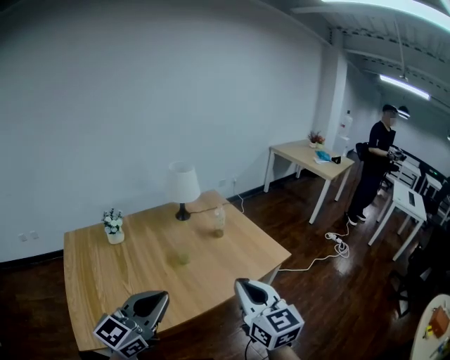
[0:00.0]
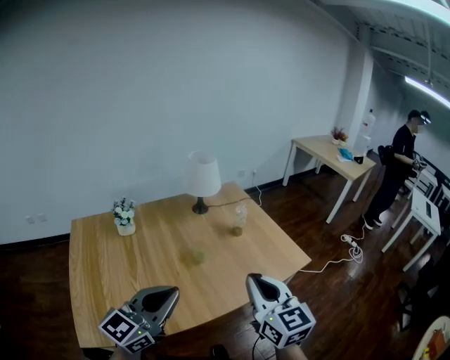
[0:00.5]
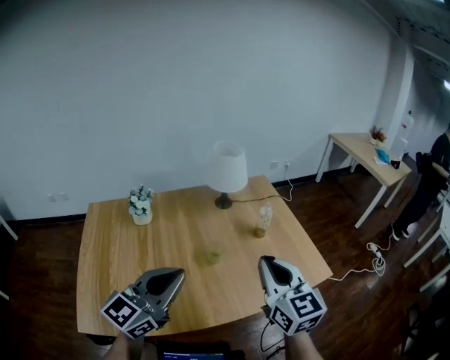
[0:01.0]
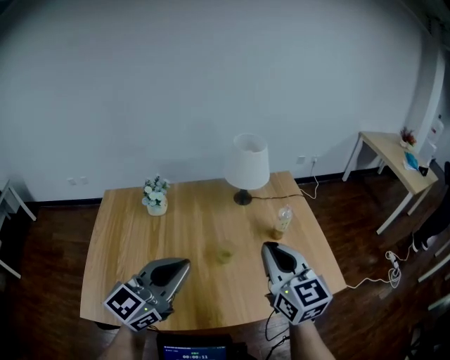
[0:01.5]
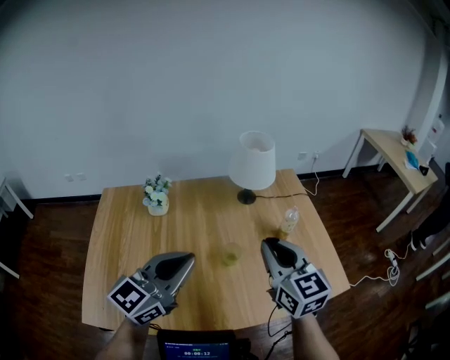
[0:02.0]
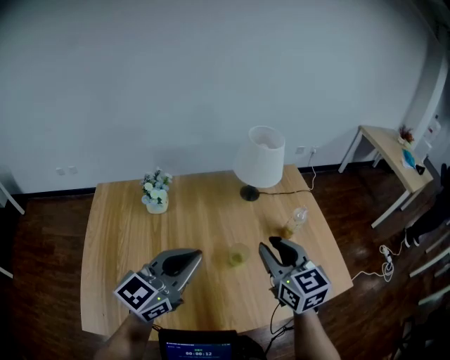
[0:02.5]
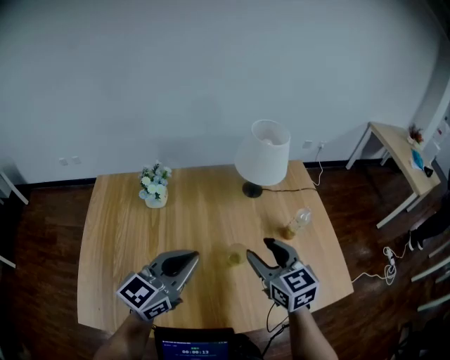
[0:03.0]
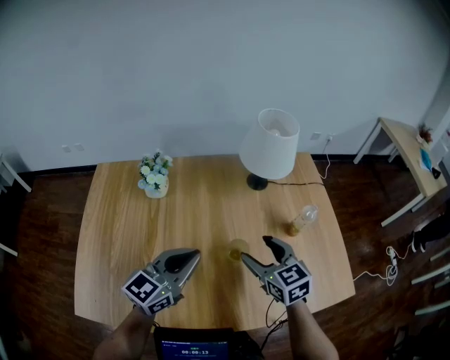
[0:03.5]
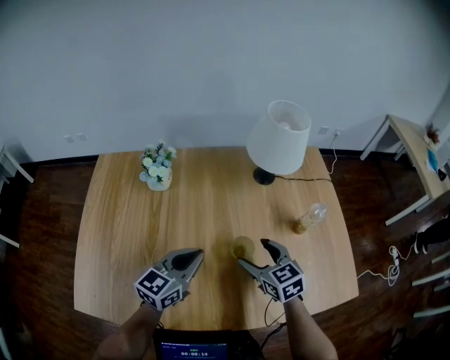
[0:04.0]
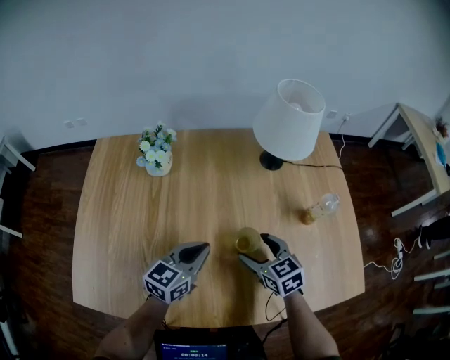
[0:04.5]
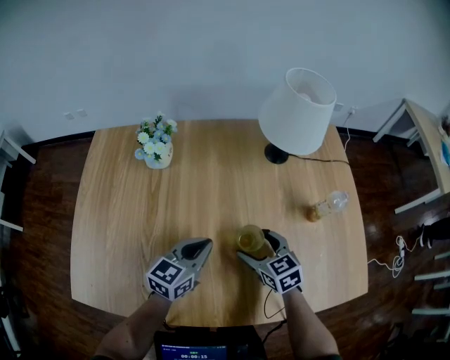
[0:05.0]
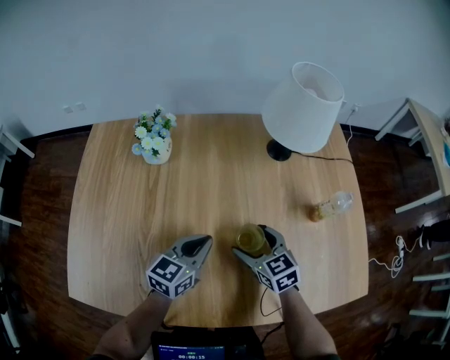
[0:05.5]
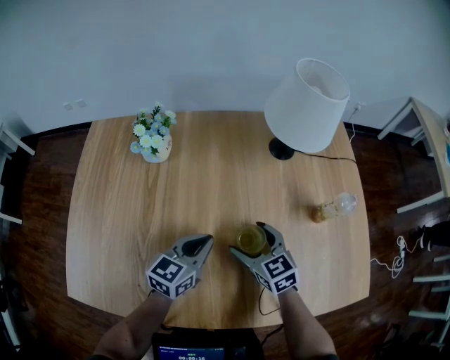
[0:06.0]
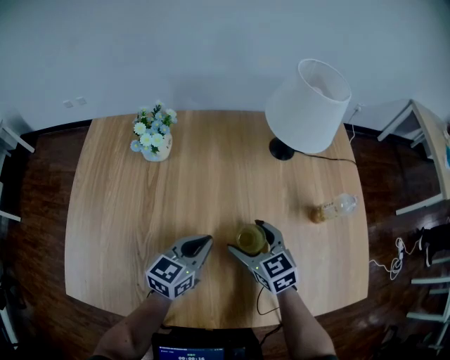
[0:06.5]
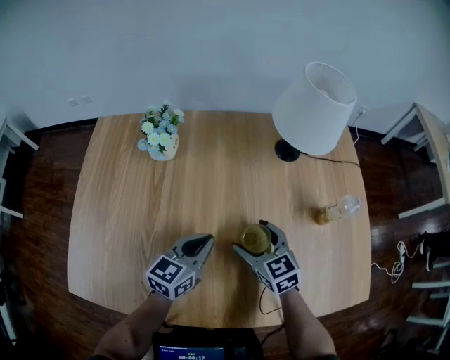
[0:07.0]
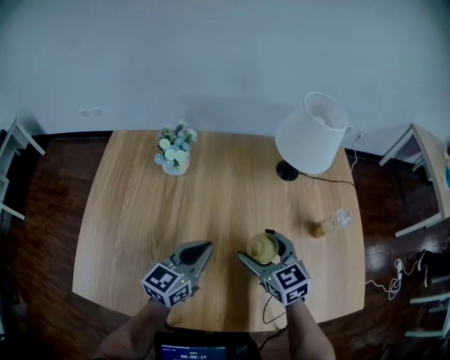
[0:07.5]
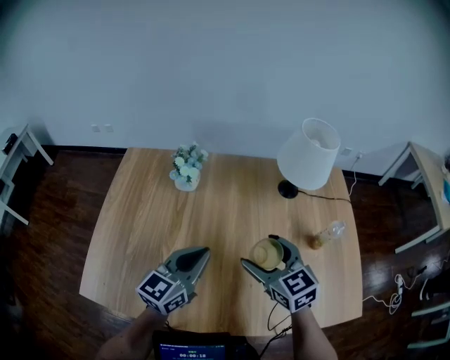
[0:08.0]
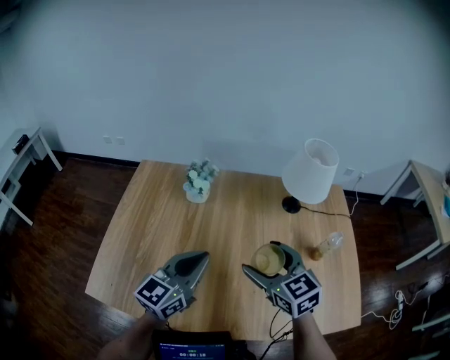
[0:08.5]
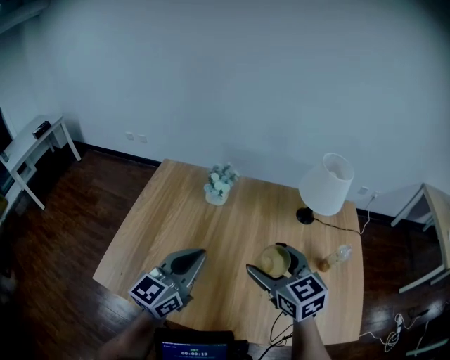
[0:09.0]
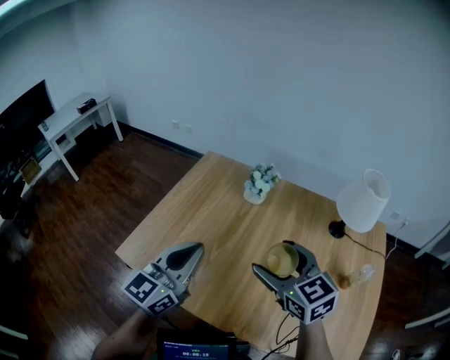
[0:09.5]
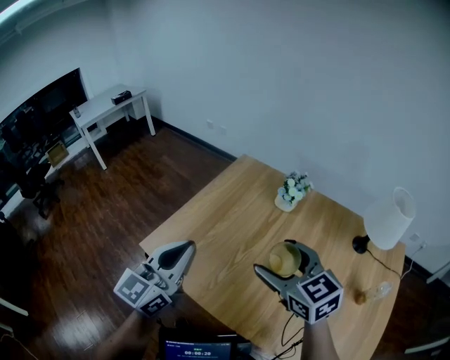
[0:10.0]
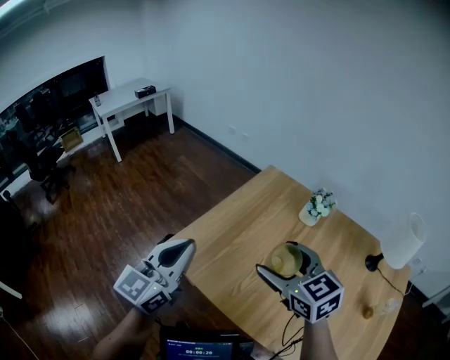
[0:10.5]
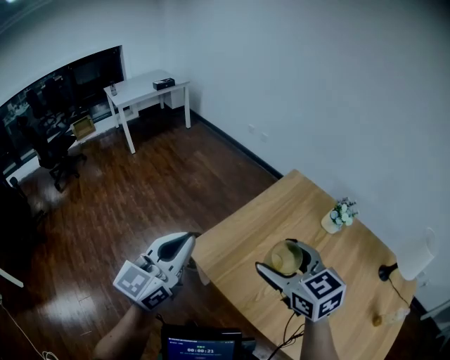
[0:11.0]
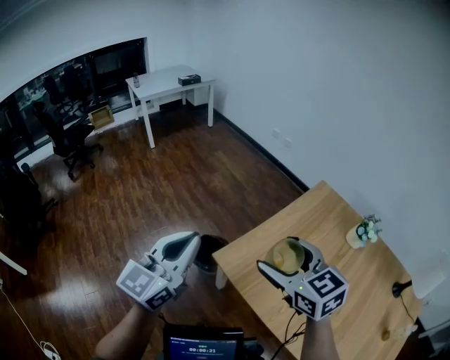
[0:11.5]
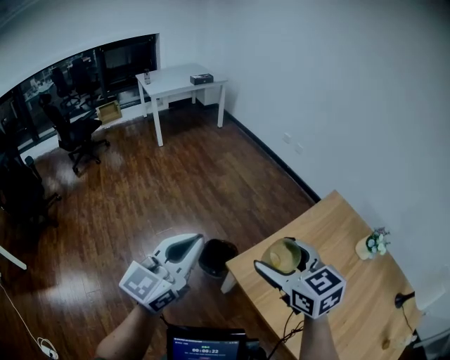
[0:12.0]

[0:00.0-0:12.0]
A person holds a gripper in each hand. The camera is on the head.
0:00.0 to 0:02.0: Both grippers travel together forward, about 25 cm. The right gripper rotates roughly 20 degrees.
0:02.0 to 0:04.0: The right gripper goes about 25 cm downward, changes its angle by approximately 30 degrees, and opens up, while the left gripper shifts roughly 20 cm downward and forward.
0:04.0 to 0:06.0: Both grippers travel together downward, some 10 cm.
0:06.0 to 0:08.0: The right gripper travels upward by about 15 cm. The left gripper travels upward and to the left by some 15 cm.
0:08.0 to 0:10.0: The right gripper moves some 20 cm, and turns by about 30 degrees, while the left gripper shifts by about 30 cm, and changes its angle by some 40 degrees.
0:10.0 to 0:12.0: The grippers both shift to the left by about 35 cm. The right gripper changes its angle by roughly 20 degrees.

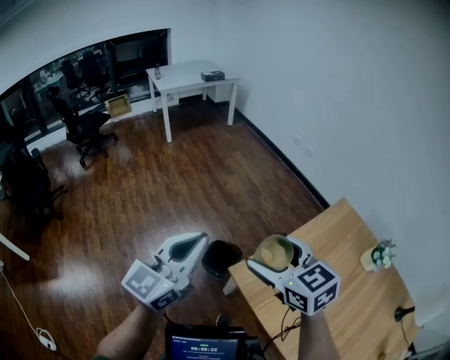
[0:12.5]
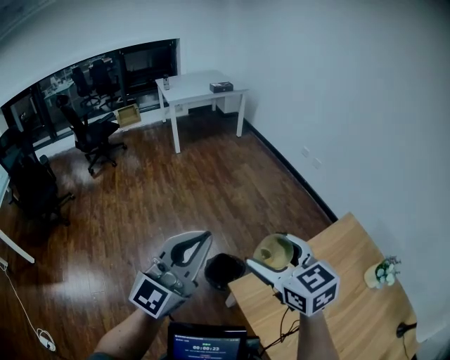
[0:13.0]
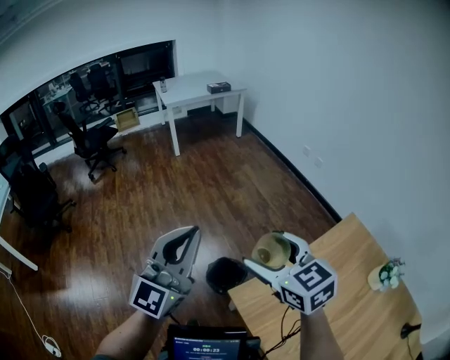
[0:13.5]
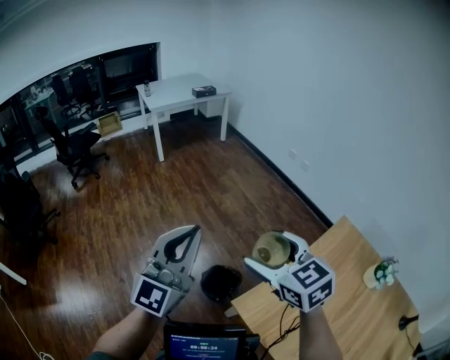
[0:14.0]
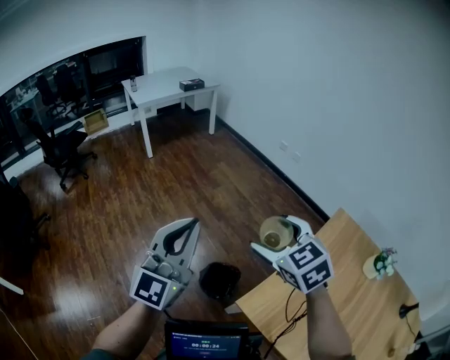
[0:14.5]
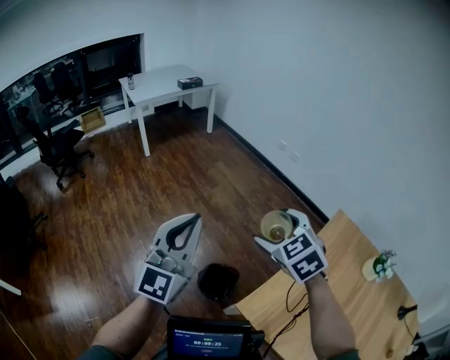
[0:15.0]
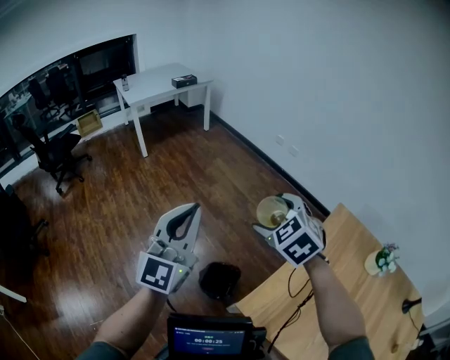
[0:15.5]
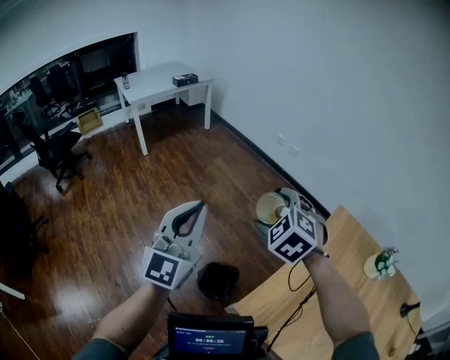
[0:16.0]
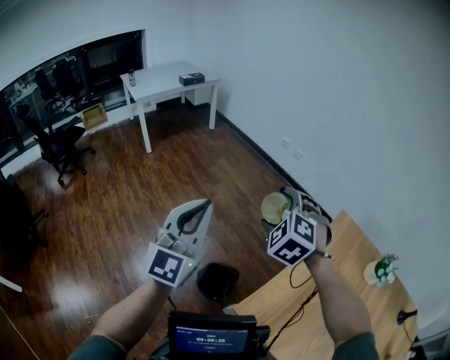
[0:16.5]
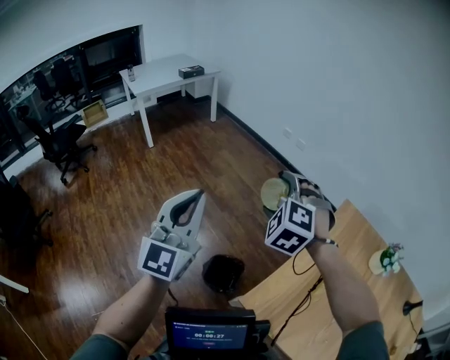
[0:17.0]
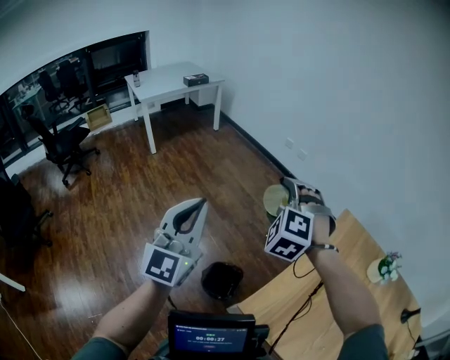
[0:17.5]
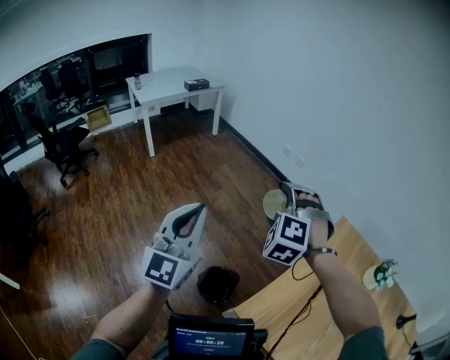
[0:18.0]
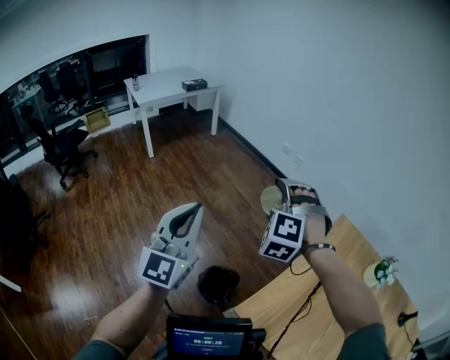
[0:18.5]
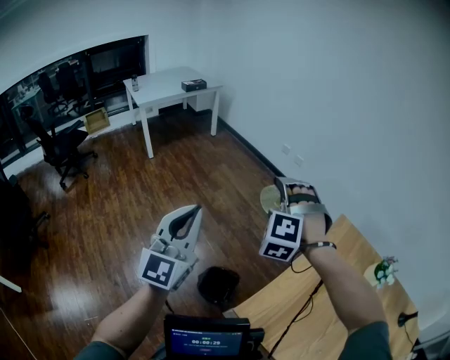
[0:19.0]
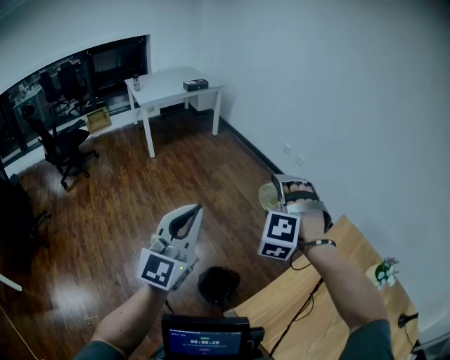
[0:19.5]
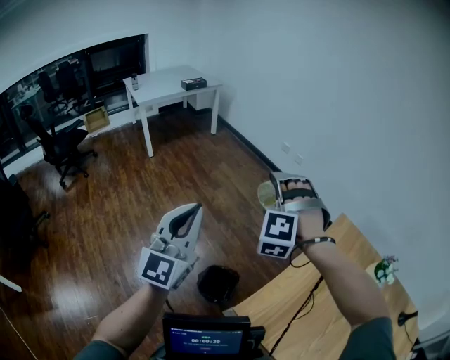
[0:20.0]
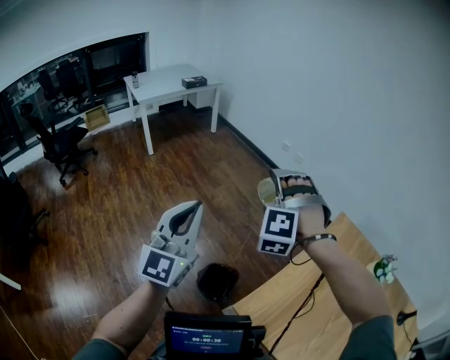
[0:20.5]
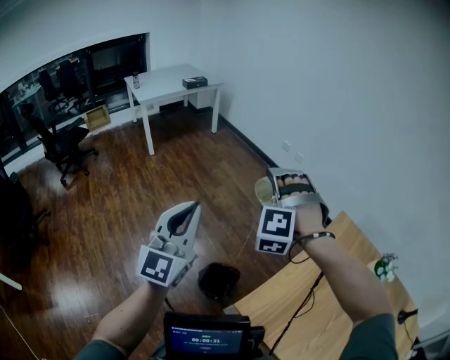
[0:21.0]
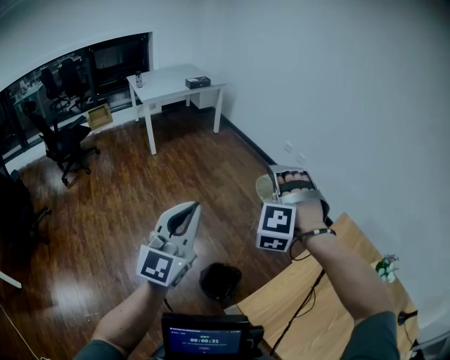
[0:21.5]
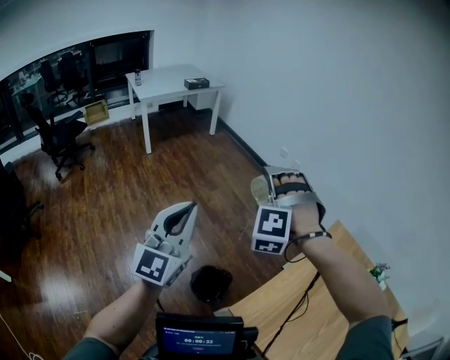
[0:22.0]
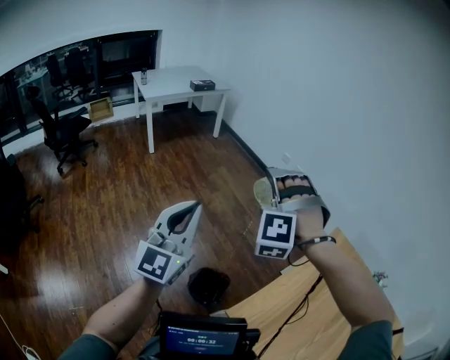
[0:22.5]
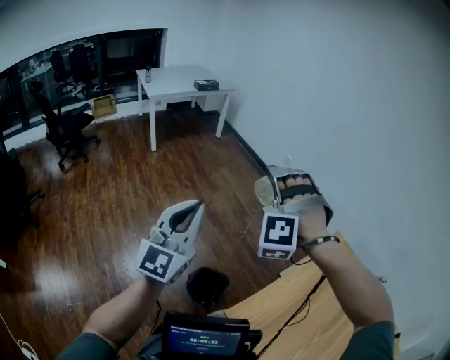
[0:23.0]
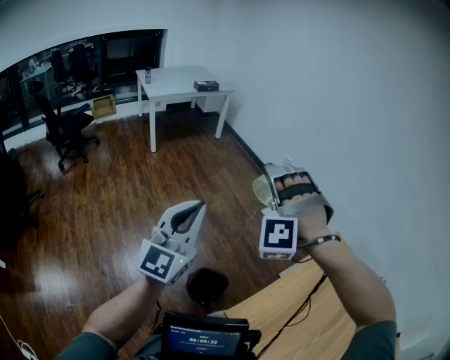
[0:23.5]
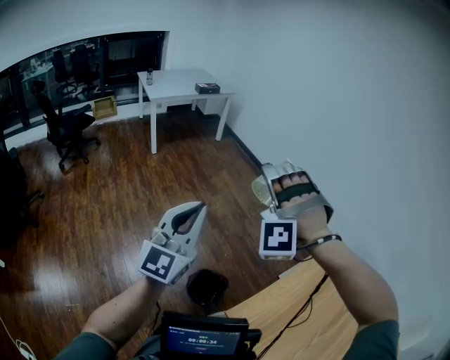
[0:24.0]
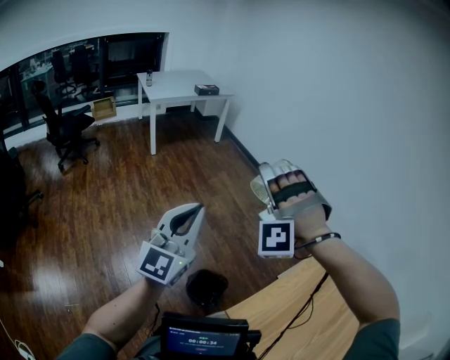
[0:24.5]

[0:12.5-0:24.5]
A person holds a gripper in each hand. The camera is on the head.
0:12.5 to 0:14.5: The two grippers go some 15 cm forward. The left gripper swivels approximately 20 degrees.
0:14.5 to 0:16.5: The two grippers go approximately 10 cm forward. The right gripper swivels approximately 40 degrees.
0:16.5 to 0:18.5: The right gripper changes its angle by roughly 20 degrees.
0:18.5 to 0:22.5: The grippers stay close to where they were, moving slightly.
0:22.5 to 0:24.5: The right gripper swivels roughly 20 degrees.

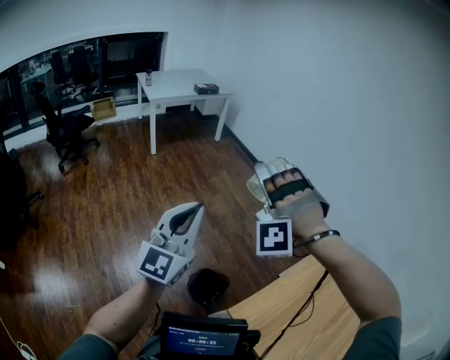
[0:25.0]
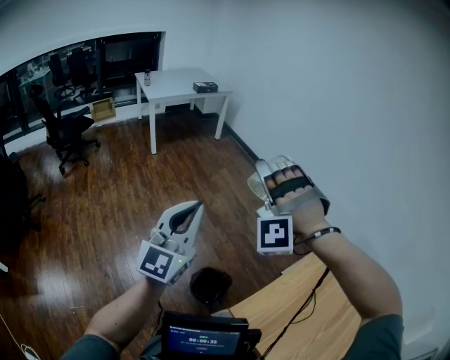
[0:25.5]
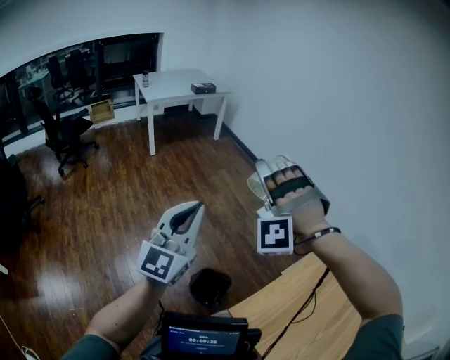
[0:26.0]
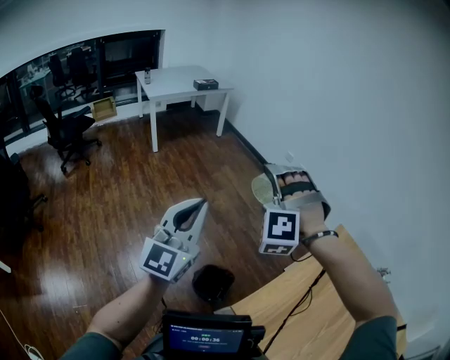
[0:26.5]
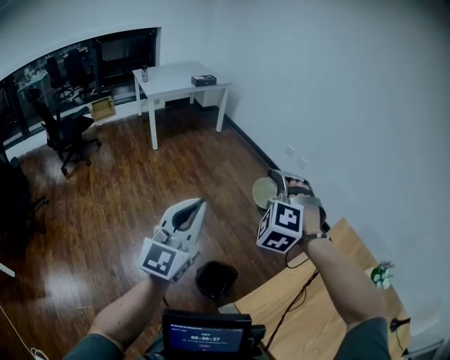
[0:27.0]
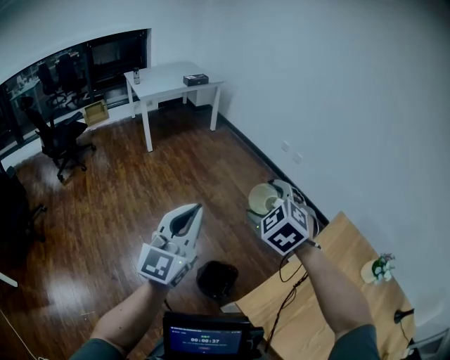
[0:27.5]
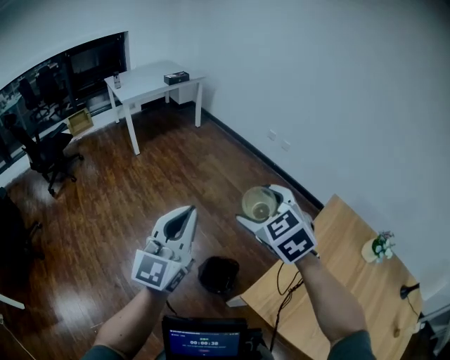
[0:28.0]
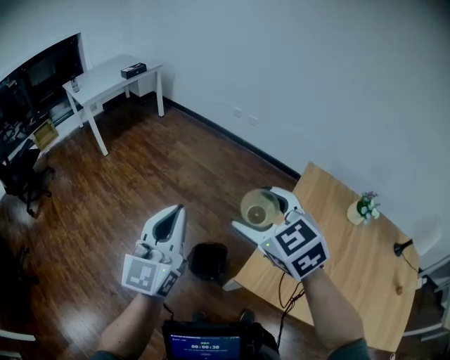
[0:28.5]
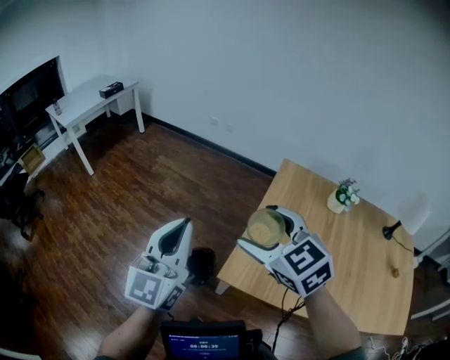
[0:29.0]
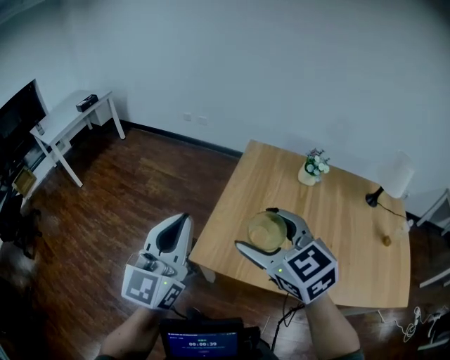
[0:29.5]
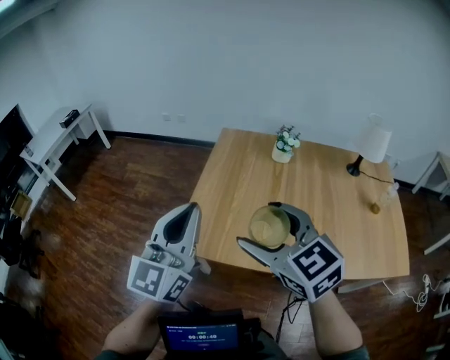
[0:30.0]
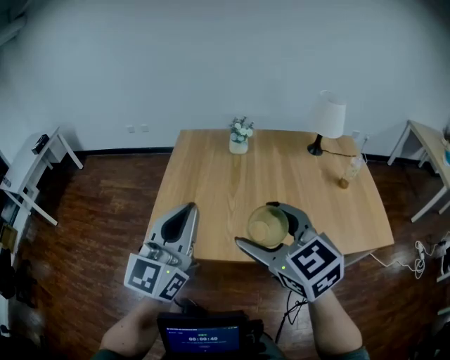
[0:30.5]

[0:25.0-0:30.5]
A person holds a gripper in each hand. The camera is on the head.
0:25.0 to 0:27.0: The right gripper heads downward, covering some 5 cm, and twists approximately 40 degrees clockwise, seen from behind.
0:27.0 to 0:28.5: The right gripper travels backward by roughly 15 cm, and twists approximately 60 degrees clockwise, seen from behind.
0:28.5 to 0:30.5: Both grippers are carried about 50 cm. The left gripper swivels approximately 40 degrees; the right gripper changes its angle by about 30 degrees.
